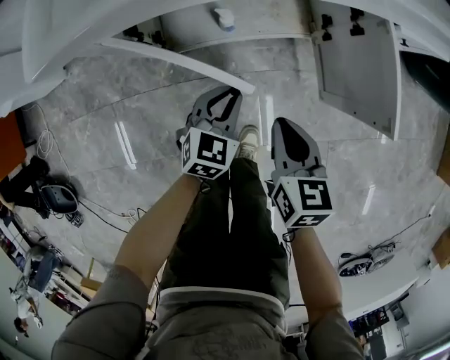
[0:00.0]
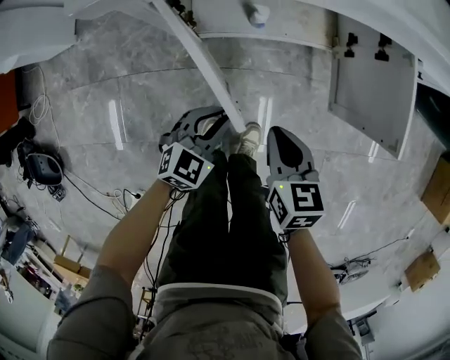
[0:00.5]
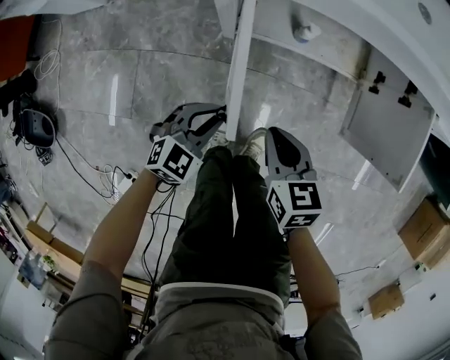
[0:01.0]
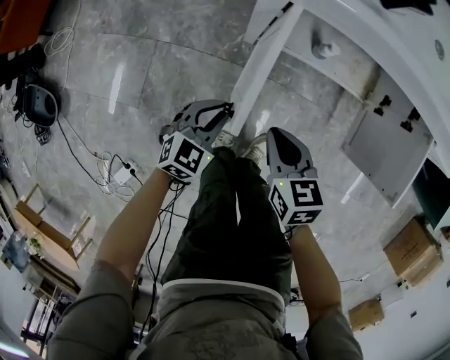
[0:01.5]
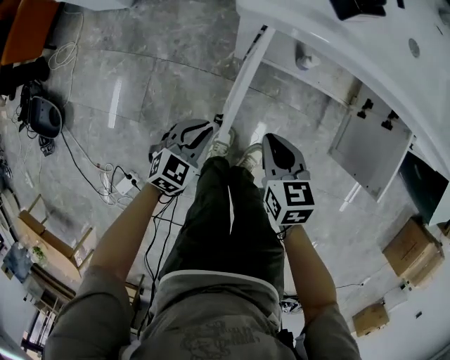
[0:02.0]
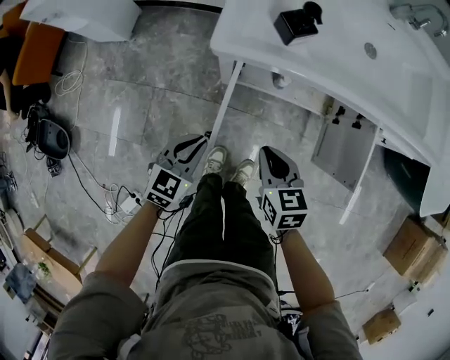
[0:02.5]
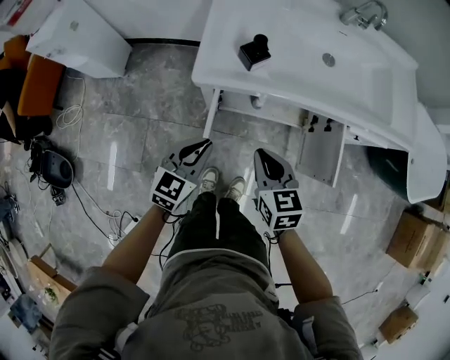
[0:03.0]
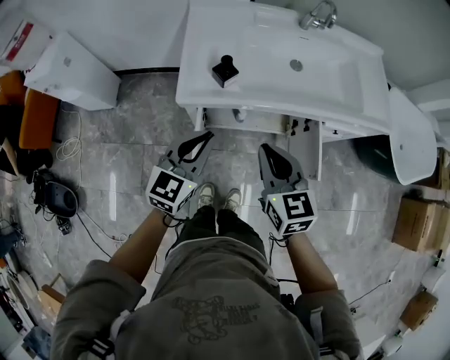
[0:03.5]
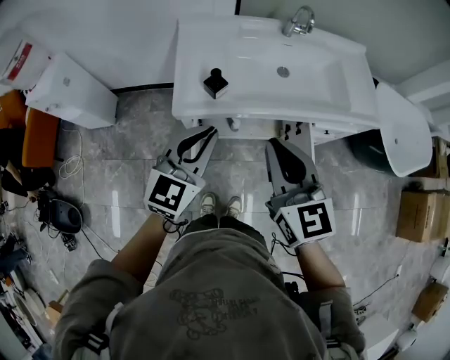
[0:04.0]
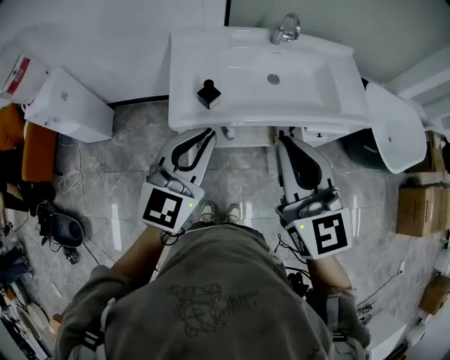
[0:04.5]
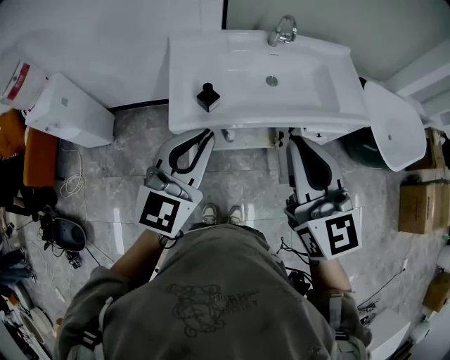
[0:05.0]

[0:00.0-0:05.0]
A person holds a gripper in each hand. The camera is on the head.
0:00.0 to 0:02.5: The left gripper shifts approximately 30 cm to the left, upward and backward; the right gripper is displaced to the left and upward by roughly 20 cm, and turns by about 30 degrees.
0:02.5 to 0:05.0: Both grippers travel together upward, some 50 cm. The left gripper turns by about 30 degrees; the right gripper angles its fingers upward, by approximately 40 degrees.

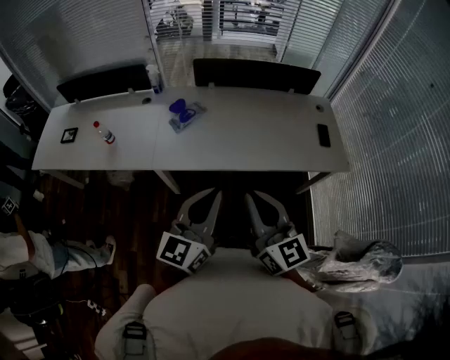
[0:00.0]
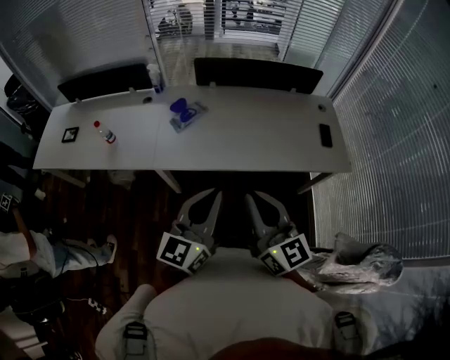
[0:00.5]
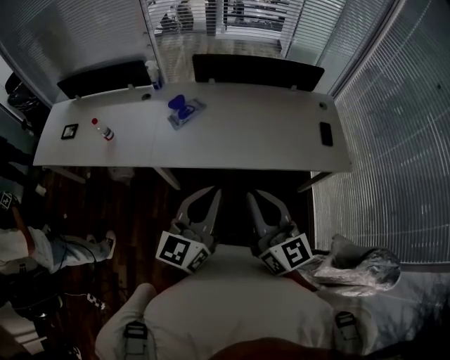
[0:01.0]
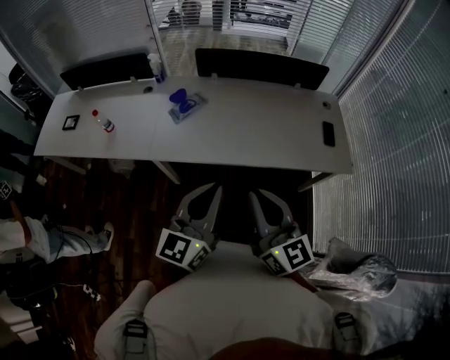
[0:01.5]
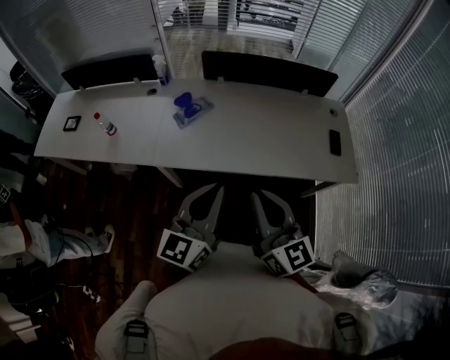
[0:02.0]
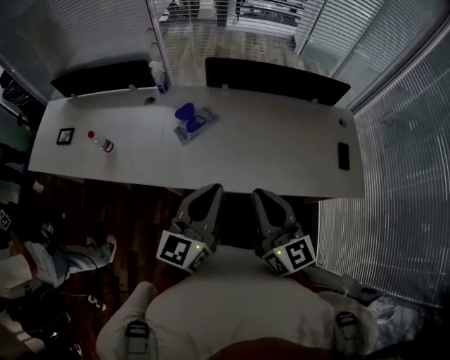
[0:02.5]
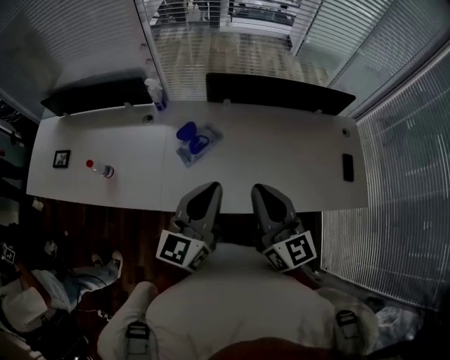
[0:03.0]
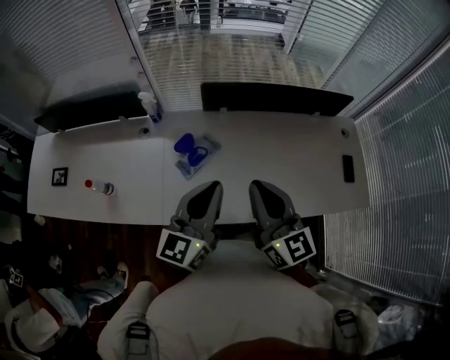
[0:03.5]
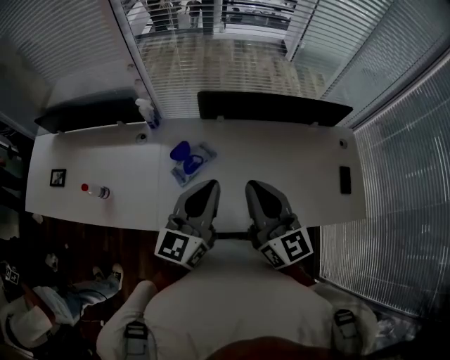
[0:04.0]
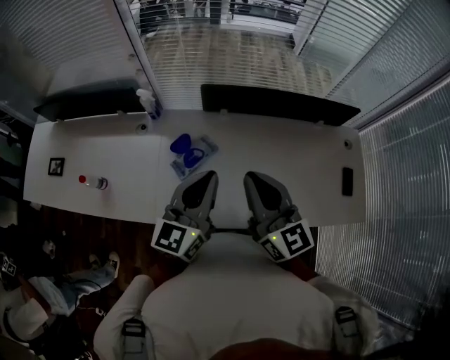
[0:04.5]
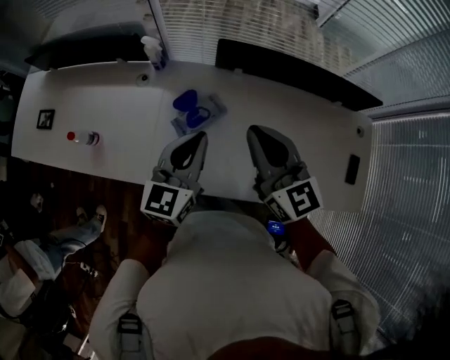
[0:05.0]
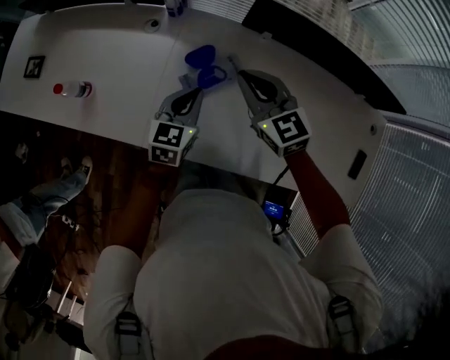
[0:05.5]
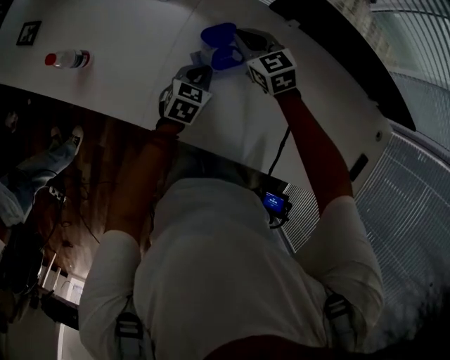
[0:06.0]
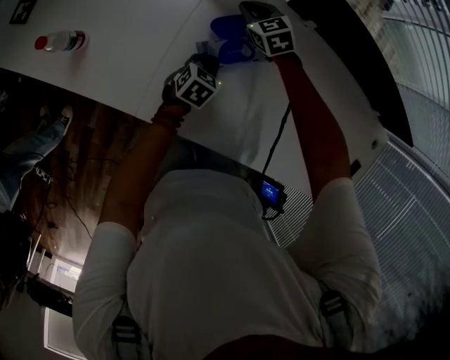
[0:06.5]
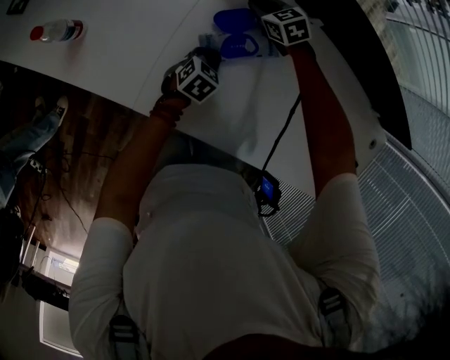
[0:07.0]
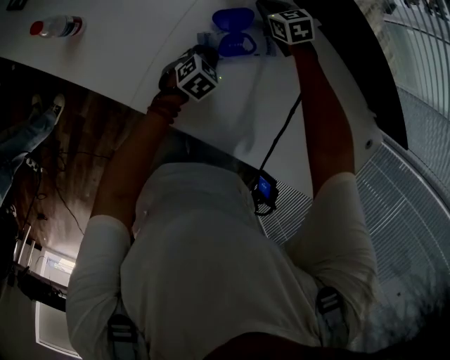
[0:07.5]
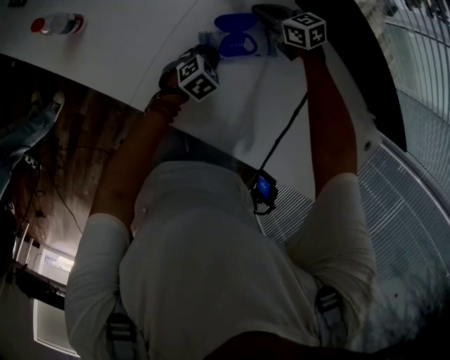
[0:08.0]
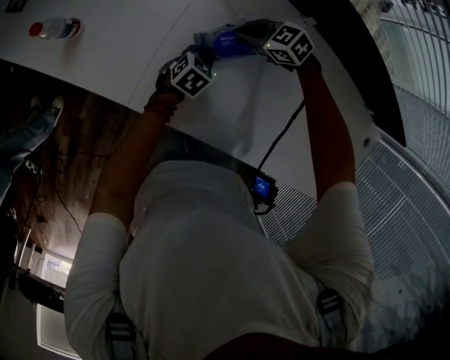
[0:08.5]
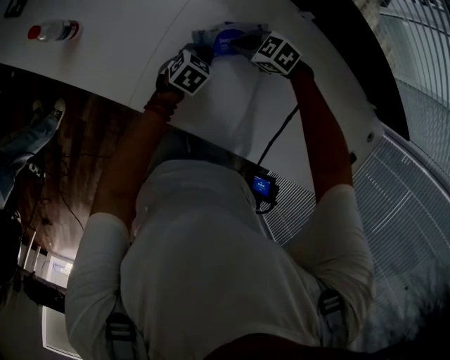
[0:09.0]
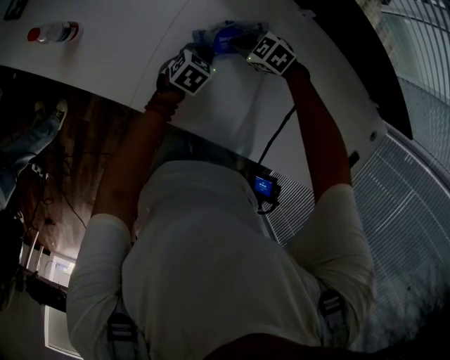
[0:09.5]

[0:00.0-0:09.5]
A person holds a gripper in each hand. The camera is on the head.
0:00.0 to 0:02.0: Both grippers travel together forward, roughly 5 cm.
0:02.0 to 0:04.0: Both grippers move forward, about 30 cm.
0:04.0 to 0:05.5: The grippers both shift downward, forward and to the left by approximately 30 cm. The left gripper tips its fingers downward by roughly 30 degrees, while the right gripper rotates roughly 40 degrees.
0:05.5 to 0:07.5: The left gripper is displaced downward by some 20 cm, and turns by about 30 degrees. Meanwhile the right gripper shifts about 30 cm downward and forward, and swivels about 30 degrees.
0:07.5 to 0:09.5: The right gripper ends up about 15 cm from where it was, and swivels approximately 30 degrees.

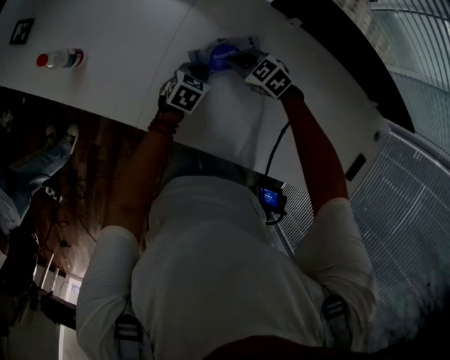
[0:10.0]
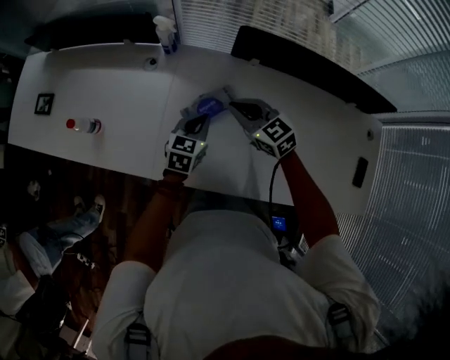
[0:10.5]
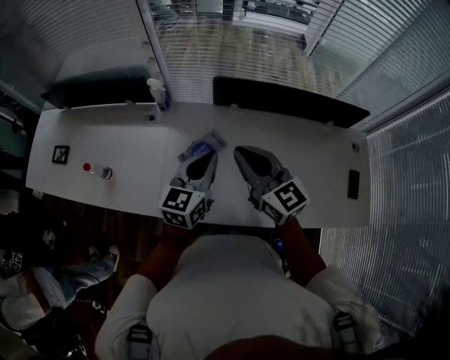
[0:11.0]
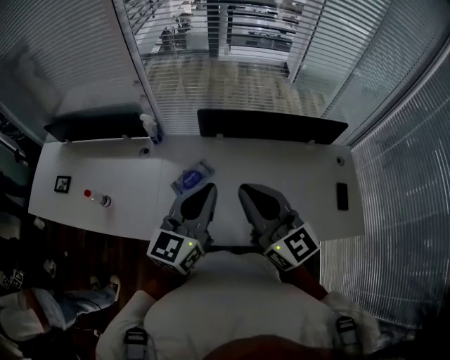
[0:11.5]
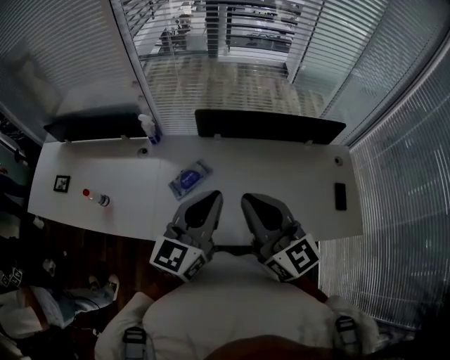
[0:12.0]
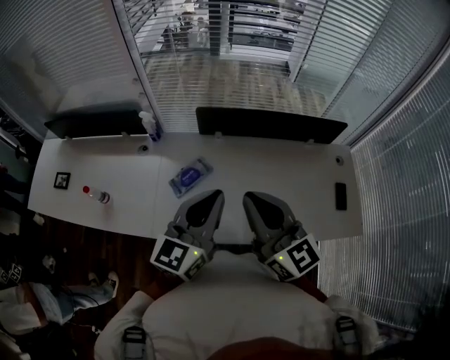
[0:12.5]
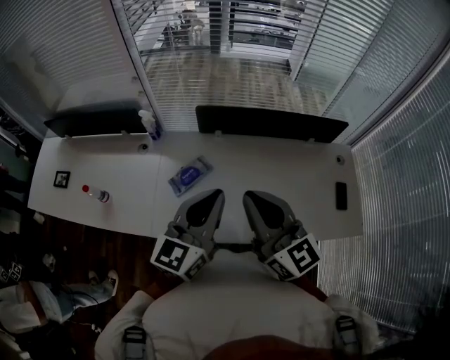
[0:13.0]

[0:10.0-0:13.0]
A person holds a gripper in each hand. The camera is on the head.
0:10.0 to 0:11.5: Both grippers move upward, some 50 cm. The left gripper points its fingers about 50 degrees further upward. The right gripper points its fingers approximately 60 degrees further upward.
0:11.5 to 0:13.0: The grippers move only a little.

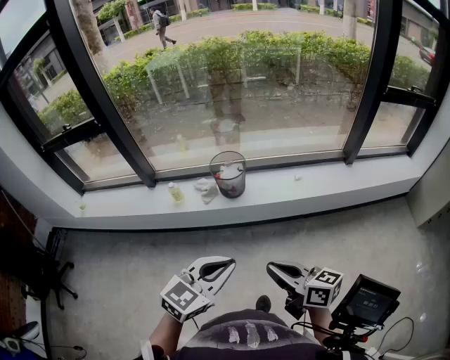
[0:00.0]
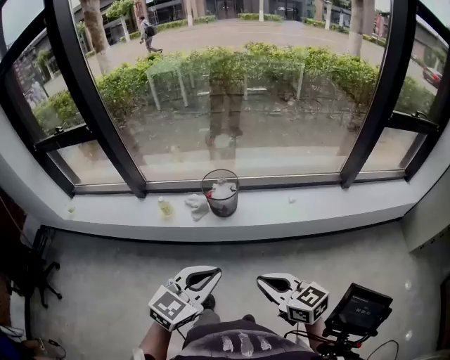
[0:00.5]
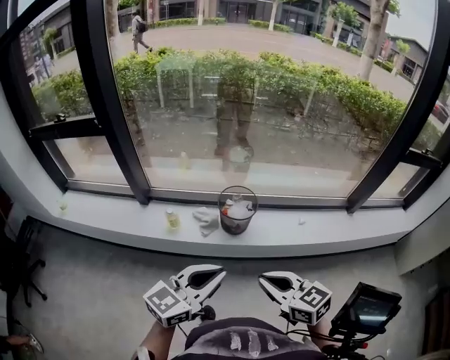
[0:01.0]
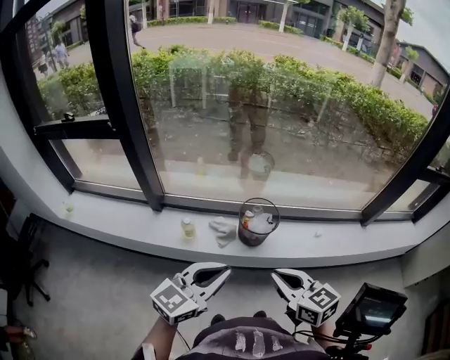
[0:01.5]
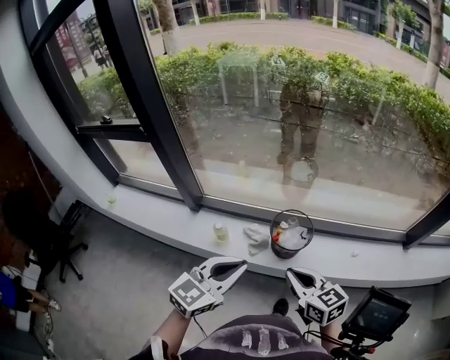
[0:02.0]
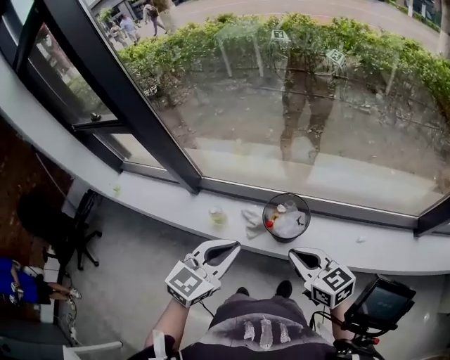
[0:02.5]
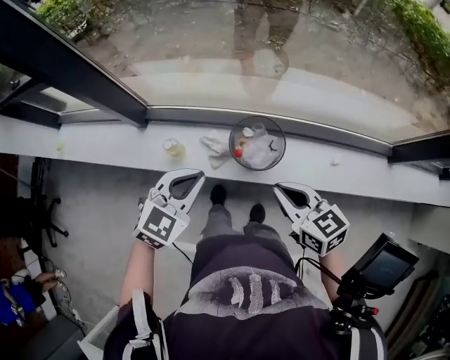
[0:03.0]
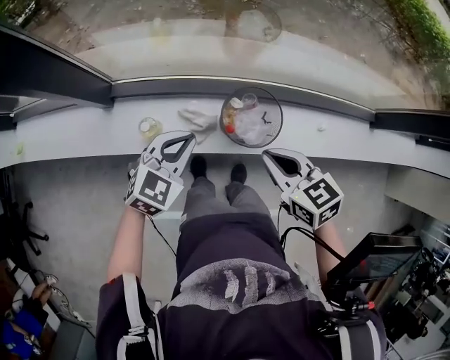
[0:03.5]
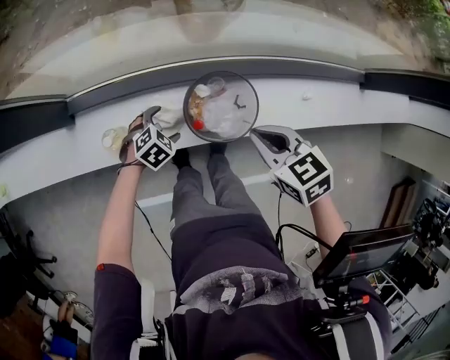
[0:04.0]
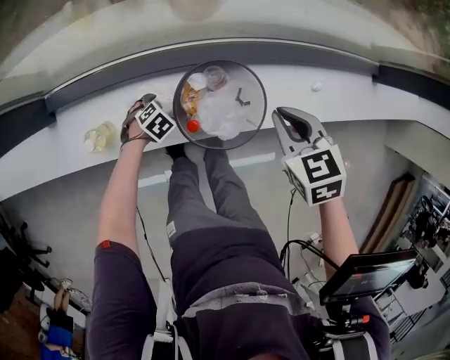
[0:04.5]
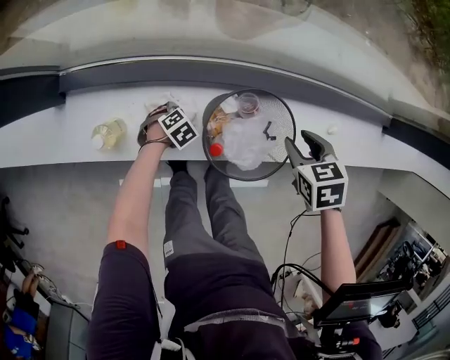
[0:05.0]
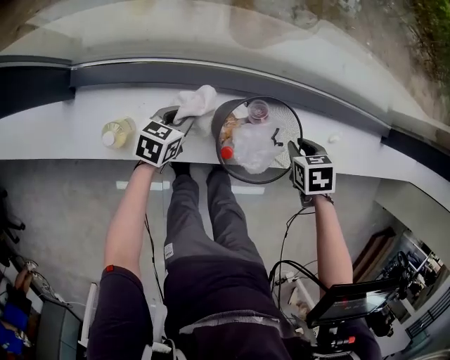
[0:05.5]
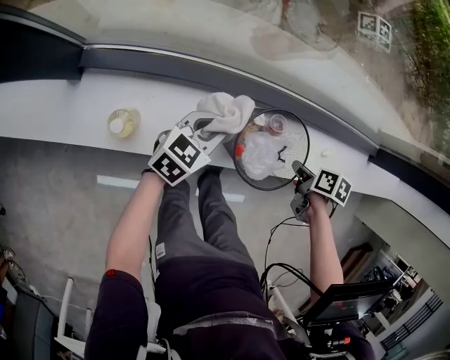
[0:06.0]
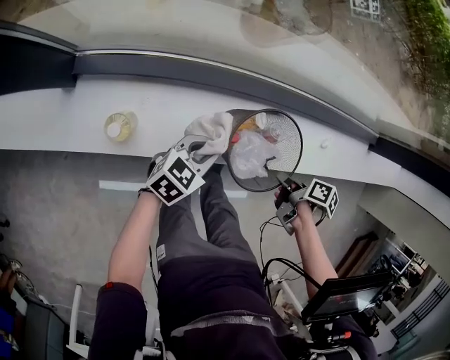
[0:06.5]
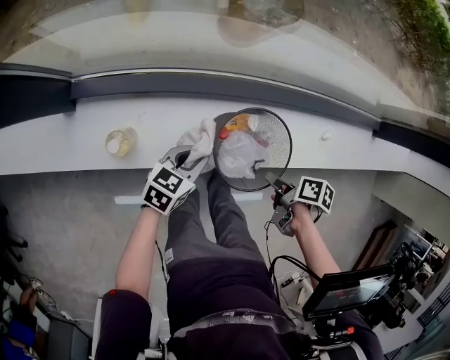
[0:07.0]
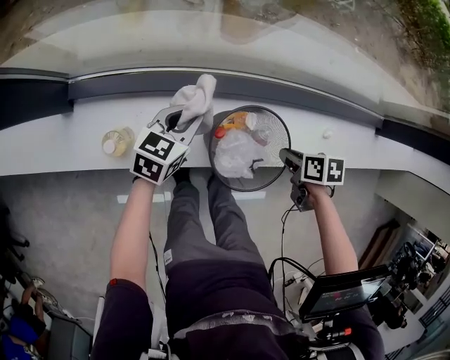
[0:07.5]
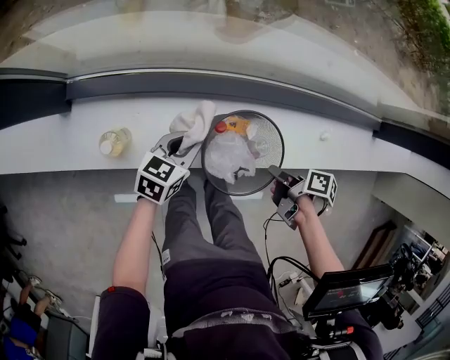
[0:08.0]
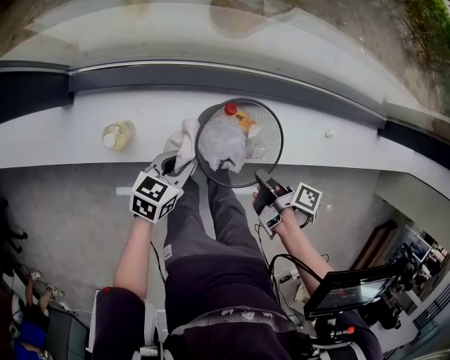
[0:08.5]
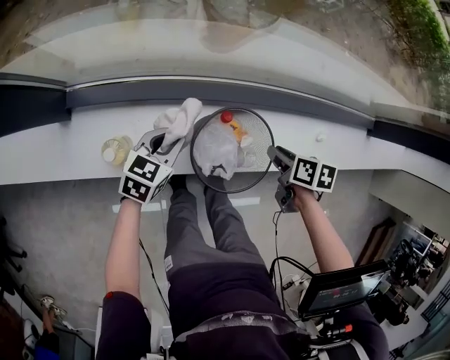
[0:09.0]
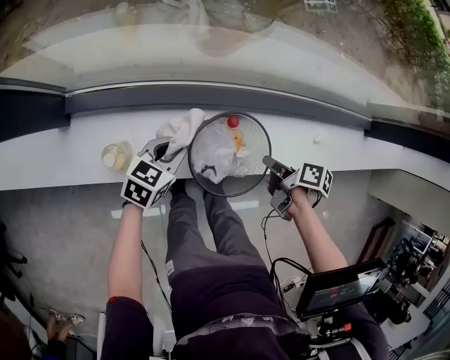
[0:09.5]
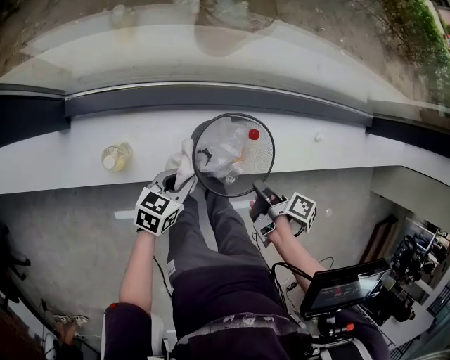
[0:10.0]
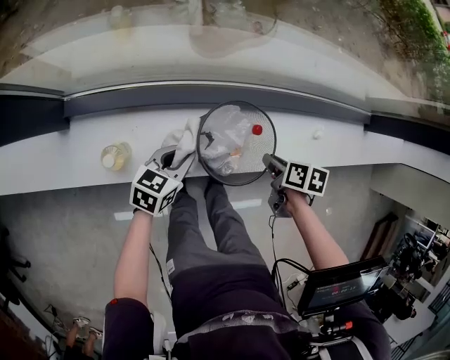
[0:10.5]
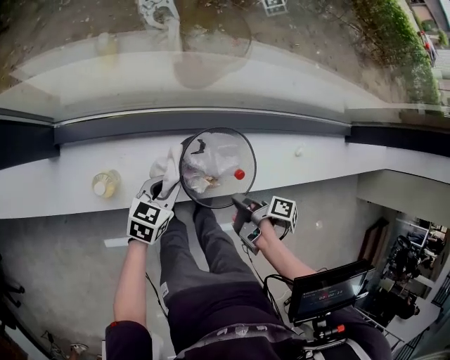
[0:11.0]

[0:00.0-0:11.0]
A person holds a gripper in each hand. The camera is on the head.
0:00.0 to 0:02.0: The right gripper shifts approximately 35 cm forward, and swivels approximately 30 degrees. Meanwhile the left gripper is displaced forward and to the left by some 35 cm.
0:02.0 to 0:03.5: The left gripper moves forward and downward, roughly 30 cm, and turns by some 20 degrees. The right gripper goes some 15 cm forward and downward, and turns by roughly 20 degrees.
0:03.5 to 0:05.5: Both grippers move downward, some 25 cm. The left gripper rotates some 40 degrees, and opens, then closes once more, while the right gripper tips its fingers downward by some 40 degrees, and opens its fingers.
0:05.5 to 0:07.5: The left gripper shifts about 10 cm upward, while the right gripper changes its angle by some 30 degrees.
0:07.5 to 0:09.0: The right gripper moves approximately 10 cm backward and comes back; the left gripper goes backward and returns, some 10 cm each way.
0:09.0 to 0:11.0: The right gripper swings forward and backward, some 10 cm each way, with 2 reversals, and rolls clockwise, seen from behind, by roughly 60 degrees.
